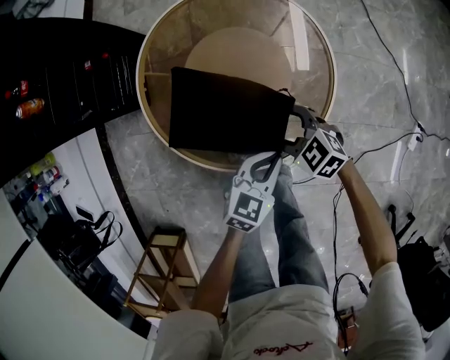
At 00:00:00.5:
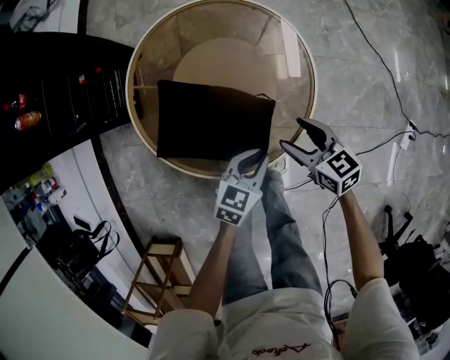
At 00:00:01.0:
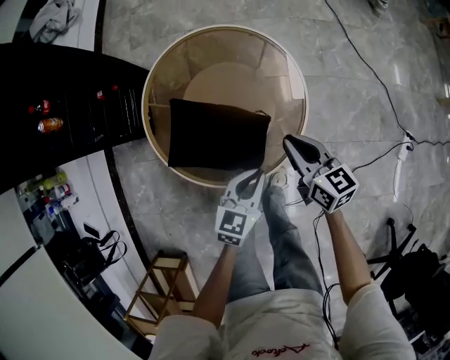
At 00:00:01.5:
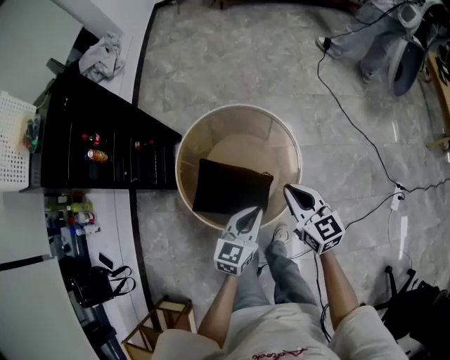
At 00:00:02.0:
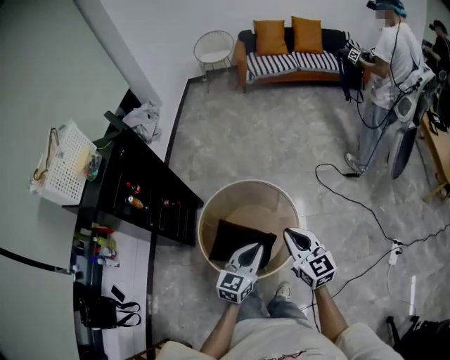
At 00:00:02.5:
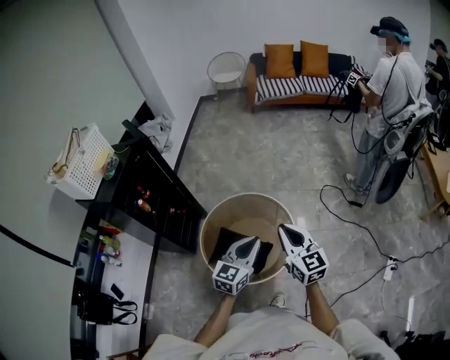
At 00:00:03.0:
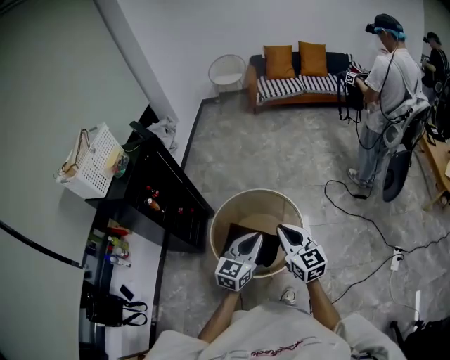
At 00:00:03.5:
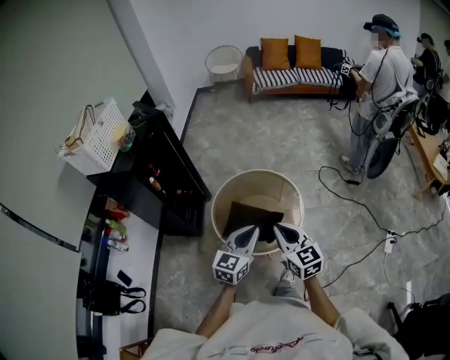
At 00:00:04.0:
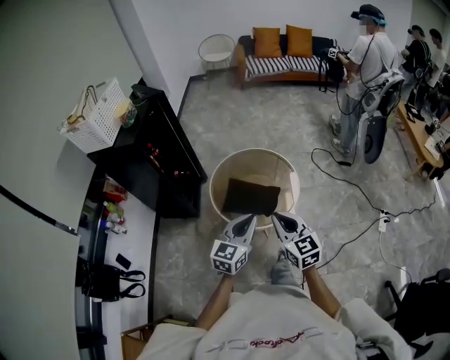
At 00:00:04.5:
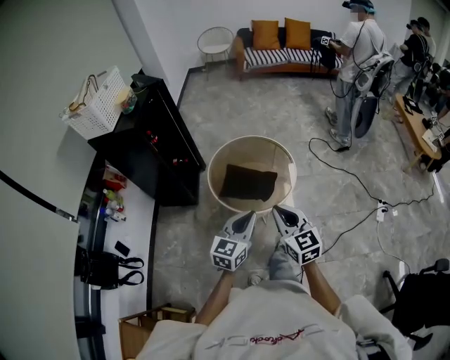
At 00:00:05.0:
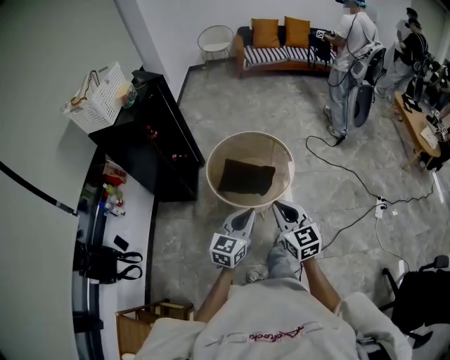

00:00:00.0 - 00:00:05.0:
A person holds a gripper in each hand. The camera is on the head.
00:00:00.0 - 00:00:02.5: Both grippers travel together upward, approximately 50 cm. The left gripper changes its angle by about 30 degrees. Meanwhile the right gripper tilts its fingers about 40 degrees upward, and closes up.
00:00:02.5 - 00:00:05.0: The two grippers go about 35 cm backward.

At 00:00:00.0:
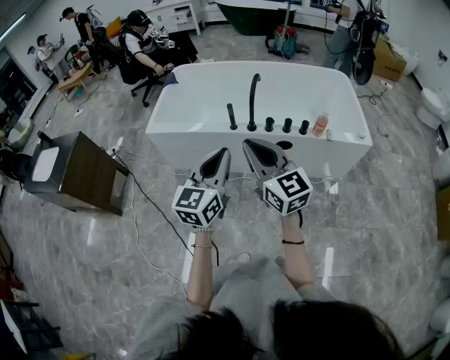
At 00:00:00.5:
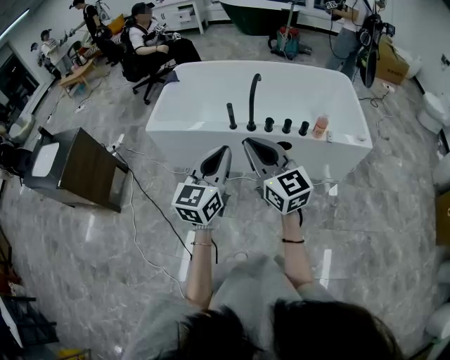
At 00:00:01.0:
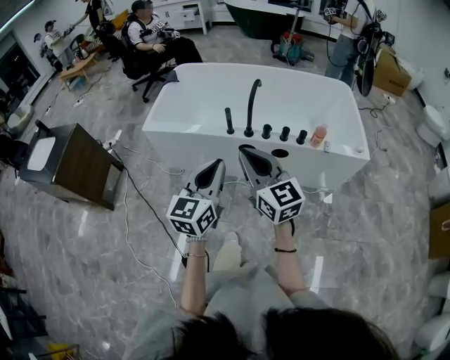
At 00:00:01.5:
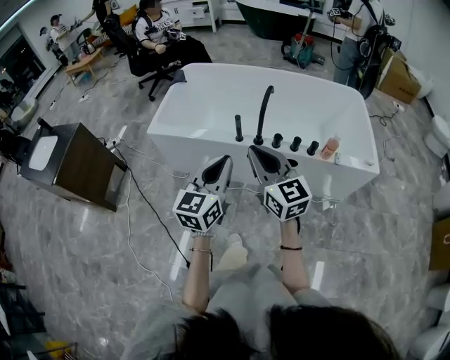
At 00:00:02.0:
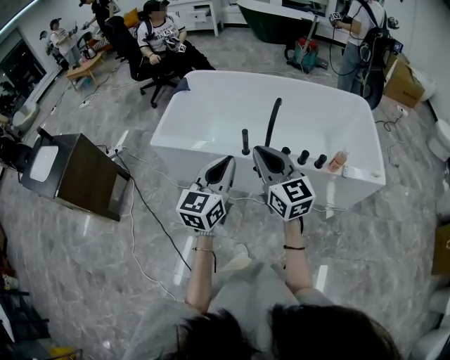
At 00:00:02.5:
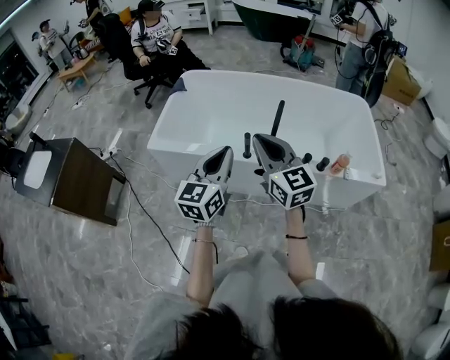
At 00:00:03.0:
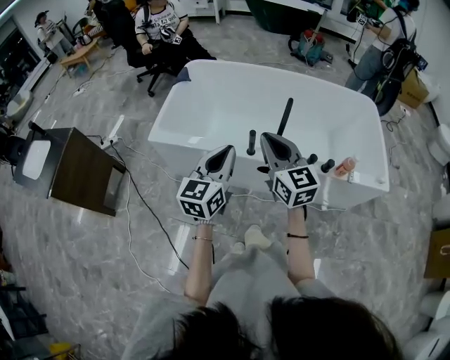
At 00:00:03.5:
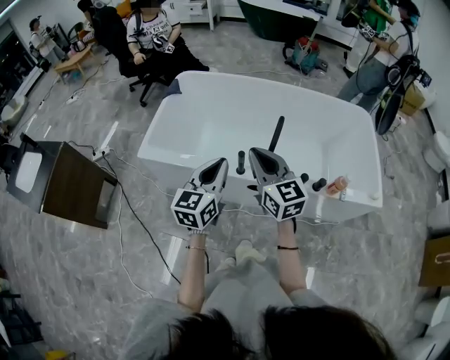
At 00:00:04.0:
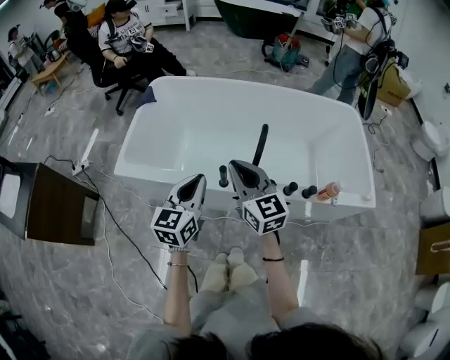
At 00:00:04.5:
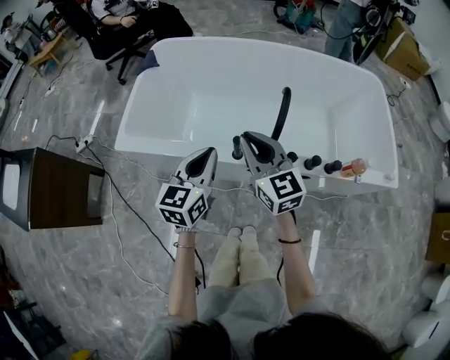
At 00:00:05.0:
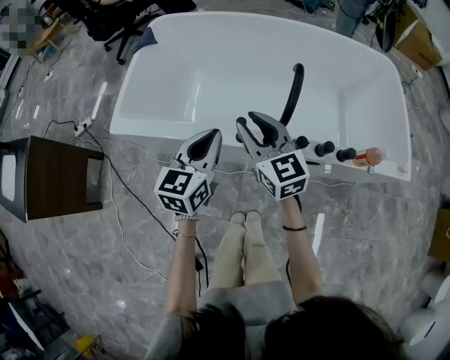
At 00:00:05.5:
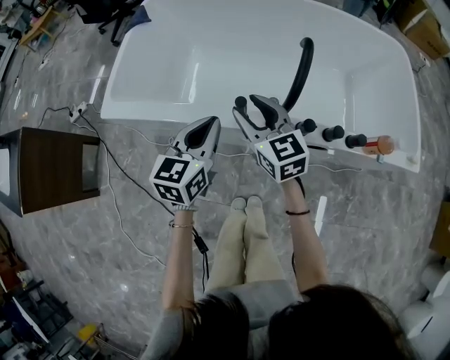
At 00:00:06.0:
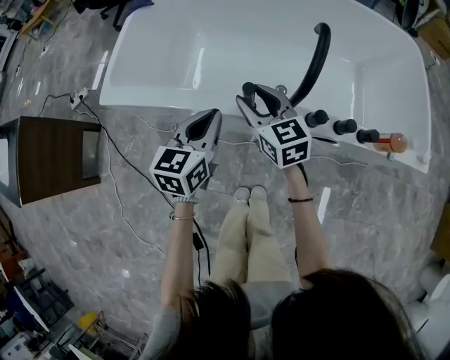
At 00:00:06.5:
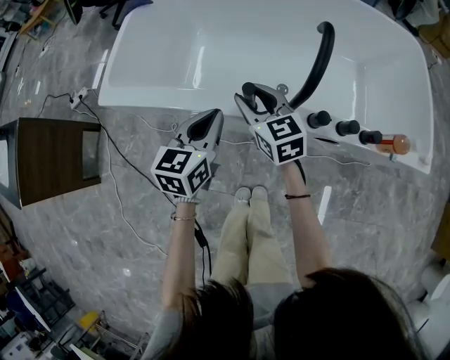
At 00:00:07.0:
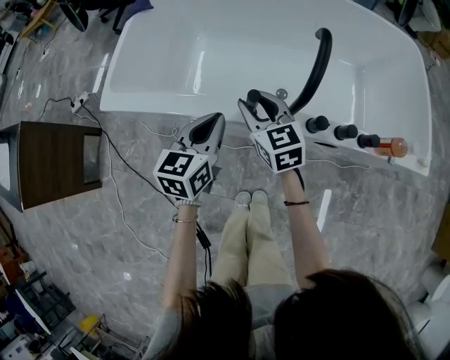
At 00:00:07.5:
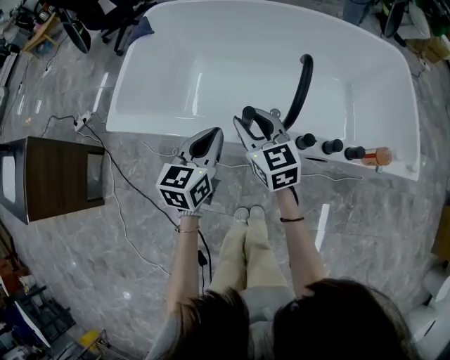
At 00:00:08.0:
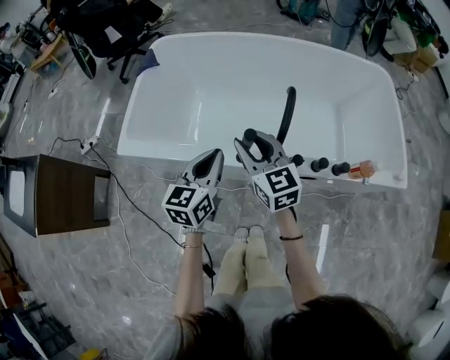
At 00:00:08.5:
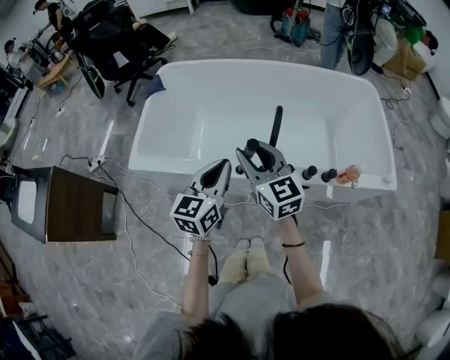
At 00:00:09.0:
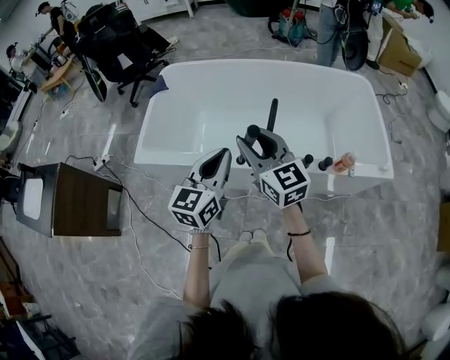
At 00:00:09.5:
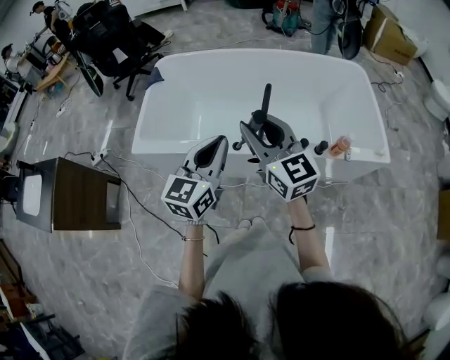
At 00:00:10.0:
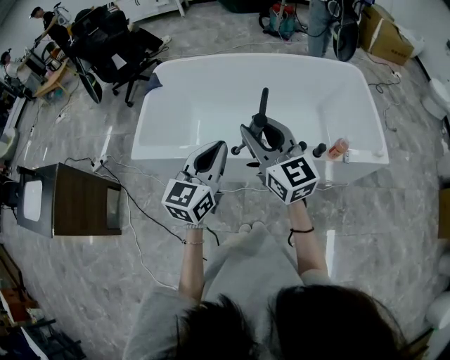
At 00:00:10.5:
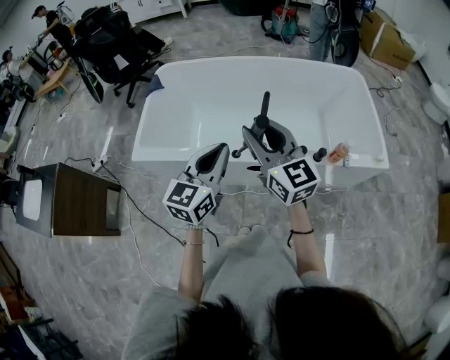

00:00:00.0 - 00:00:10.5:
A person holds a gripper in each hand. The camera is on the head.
00:00:00.0 - 00:00:02.0: The grippers both shift forward by roughly 15 cm.
00:00:02.0 - 00:00:04.0: The two grippers go roughly 20 cm forward and downward.
00:00:04.0 - 00:00:06.5: The grippers both shift downward by roughly 25 cm. The right gripper opens its fingers.
00:00:06.5 - 00:00:08.5: Both grippers move upward, approximately 25 cm.
00:00:08.5 - 00:00:10.5: Both grippers travel together upward and backward, about 10 cm.

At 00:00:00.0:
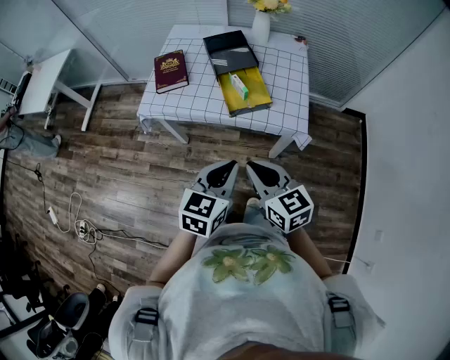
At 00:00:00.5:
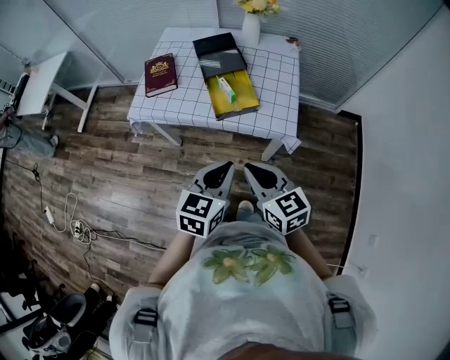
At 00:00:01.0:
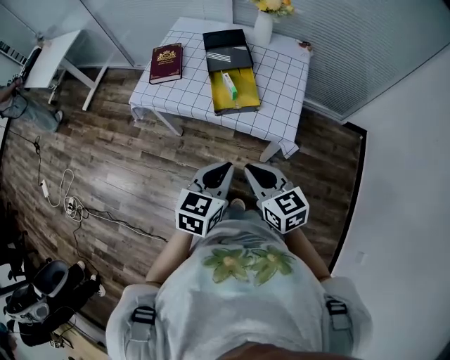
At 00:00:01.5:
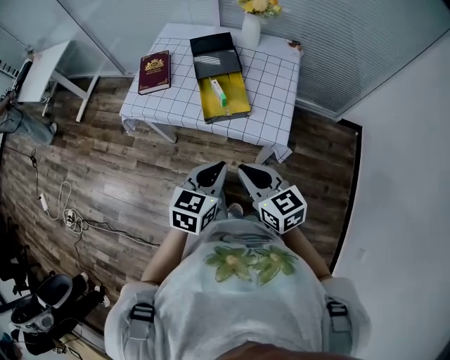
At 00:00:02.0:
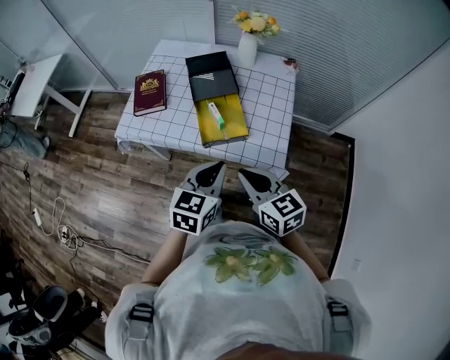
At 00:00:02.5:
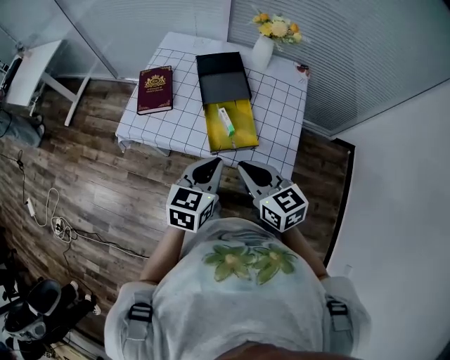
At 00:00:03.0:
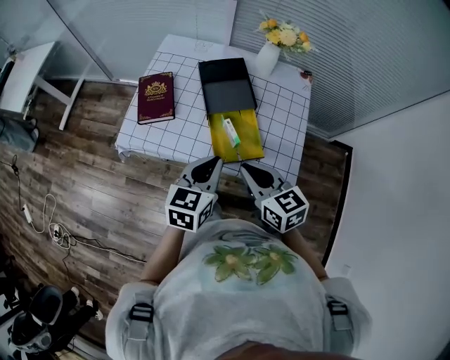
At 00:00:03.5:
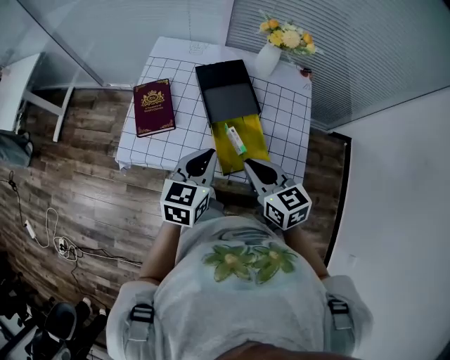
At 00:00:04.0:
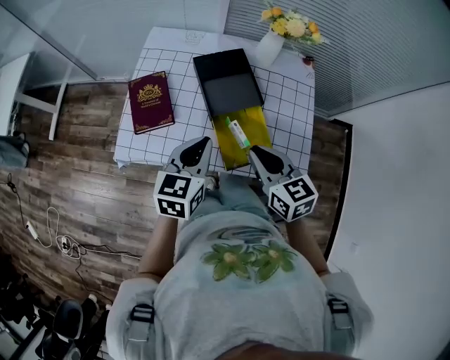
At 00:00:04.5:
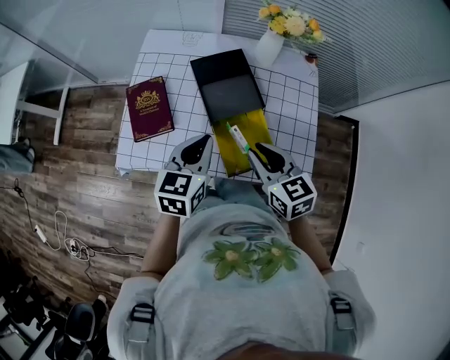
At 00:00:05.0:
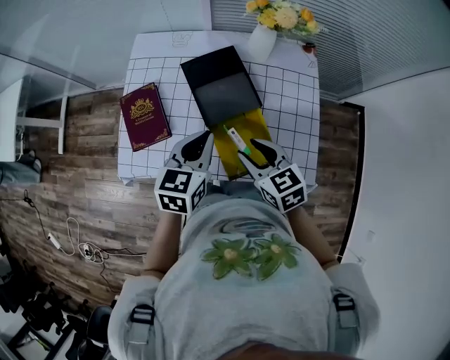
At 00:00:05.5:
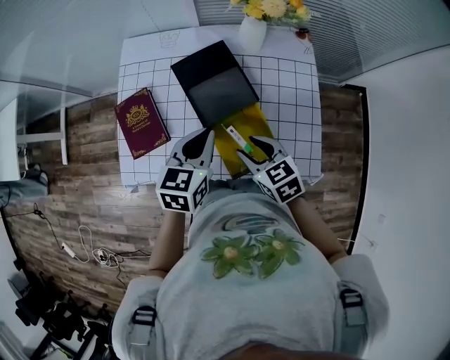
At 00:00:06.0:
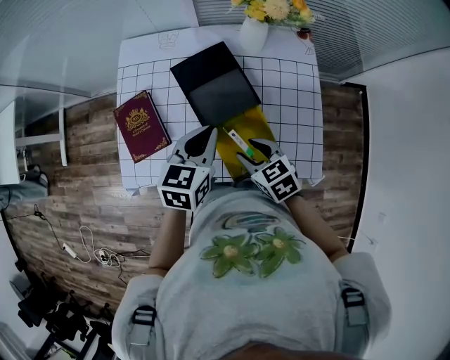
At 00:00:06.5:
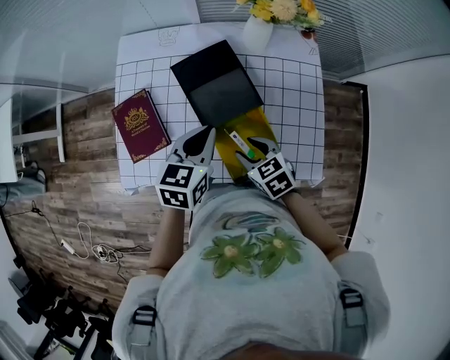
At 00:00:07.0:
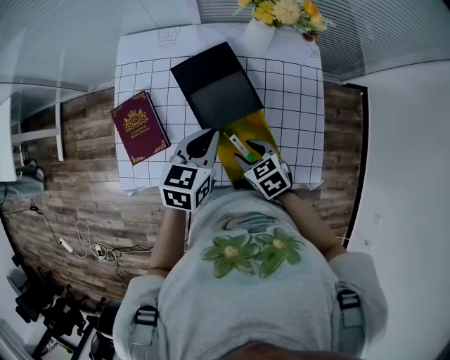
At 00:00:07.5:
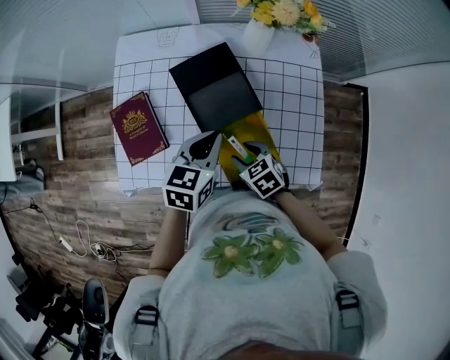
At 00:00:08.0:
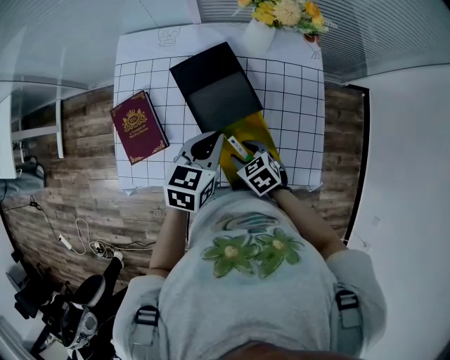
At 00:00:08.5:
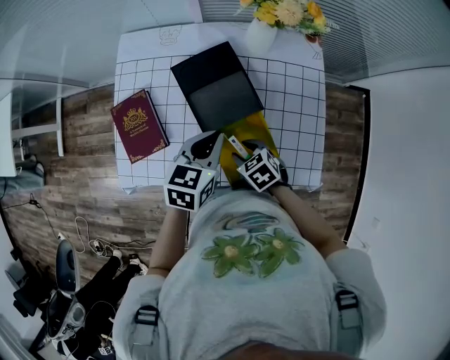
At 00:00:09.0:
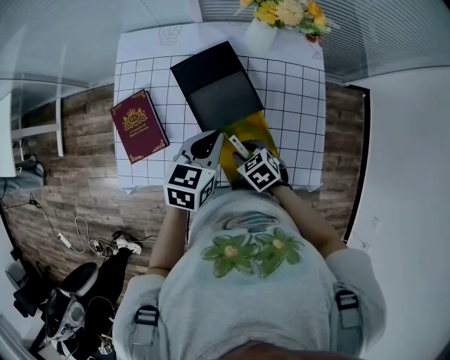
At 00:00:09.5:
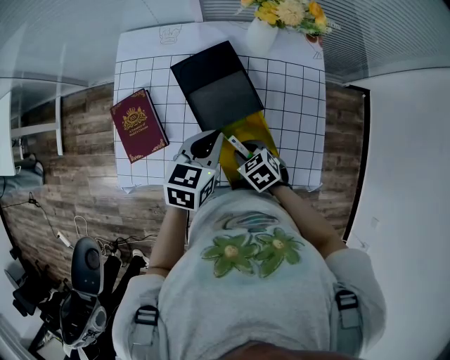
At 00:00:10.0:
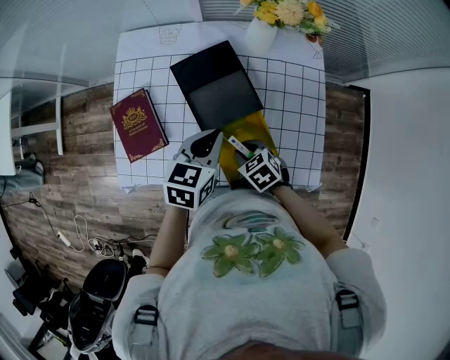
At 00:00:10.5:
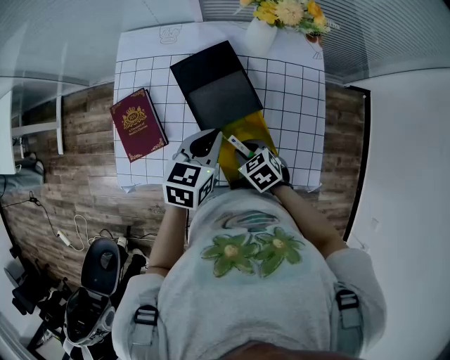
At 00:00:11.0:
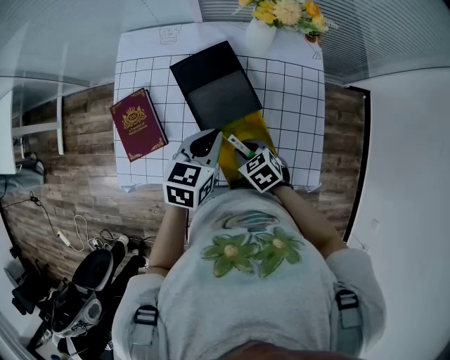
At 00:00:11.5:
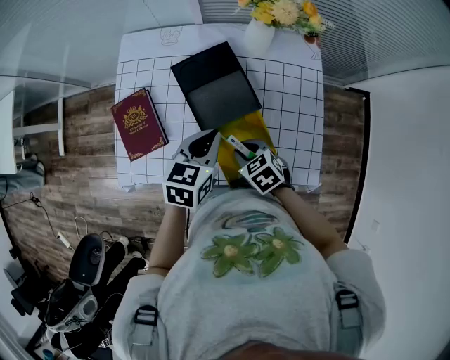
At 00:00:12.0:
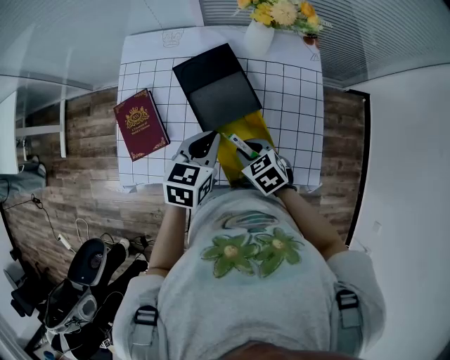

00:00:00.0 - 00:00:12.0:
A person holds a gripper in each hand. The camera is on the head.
00:00:00.0 - 00:00:02.0: Both grippers travel together forward and to the right, some 15 cm.
00:00:02.0 - 00:00:04.0: The left gripper heads forward and to the left, covering about 25 cm. The right gripper heads forward, covering roughly 20 cm.
00:00:04.0 - 00:00:06.0: The right gripper travels downward and forward by approximately 15 cm, changes its angle by some 20 degrees, and opens. The left gripper shifts approximately 10 cm forward and to the right.
00:00:06.0 - 00:00:08.0: The right gripper is displaced downward by roughly 10 cm.
00:00:08.0 - 00:00:10.0: Neither gripper changes place.
00:00:10.0 - 00:00:12.0: The grippers move only a little.
